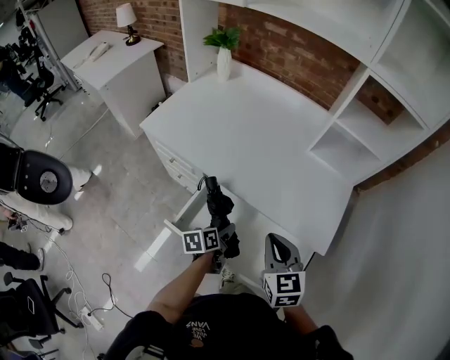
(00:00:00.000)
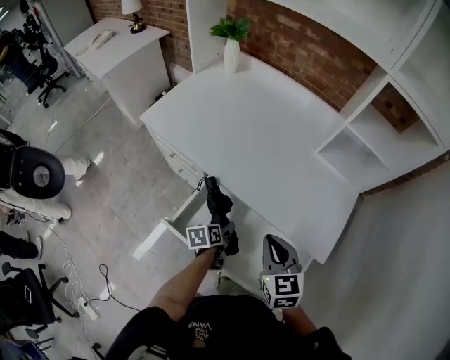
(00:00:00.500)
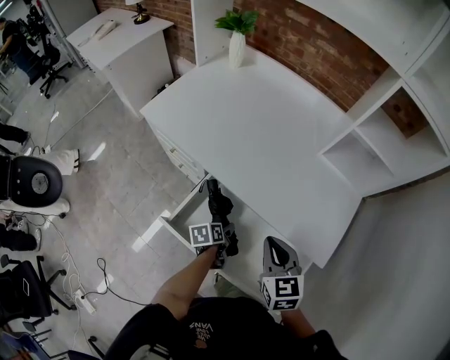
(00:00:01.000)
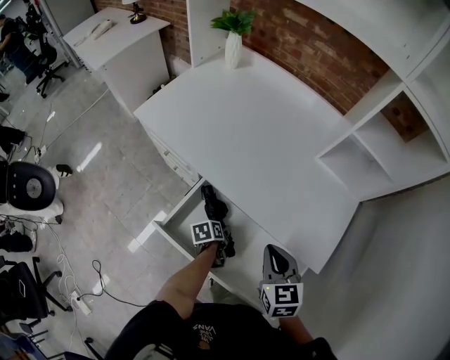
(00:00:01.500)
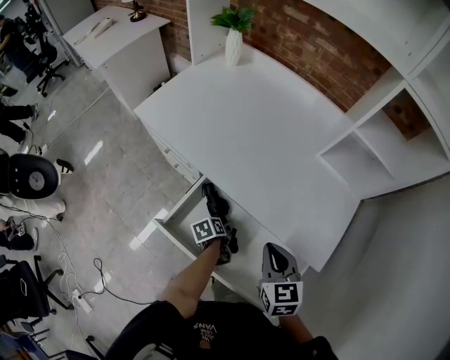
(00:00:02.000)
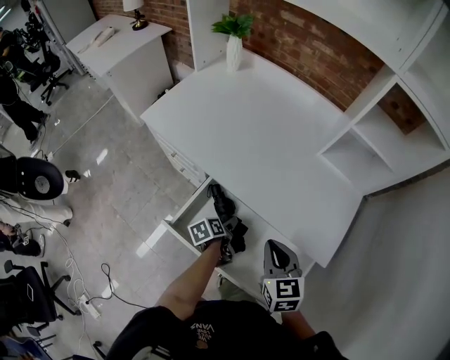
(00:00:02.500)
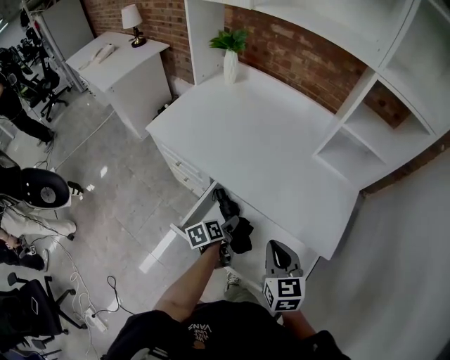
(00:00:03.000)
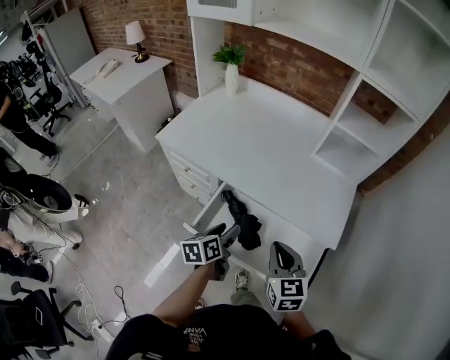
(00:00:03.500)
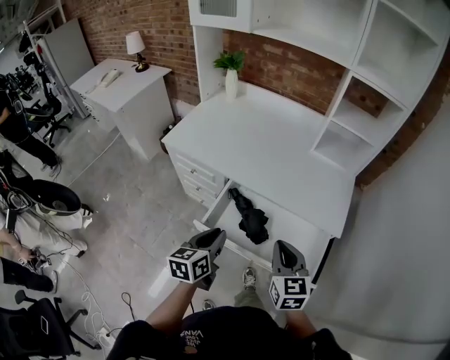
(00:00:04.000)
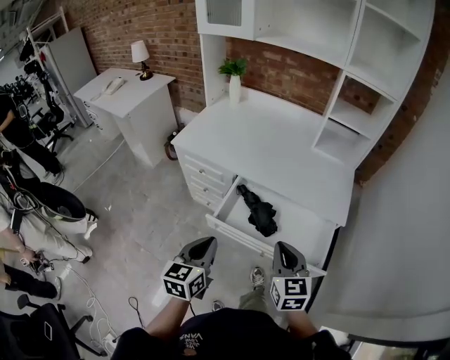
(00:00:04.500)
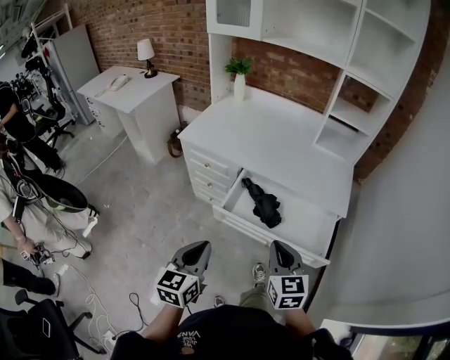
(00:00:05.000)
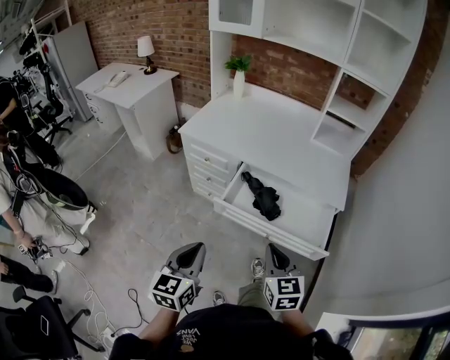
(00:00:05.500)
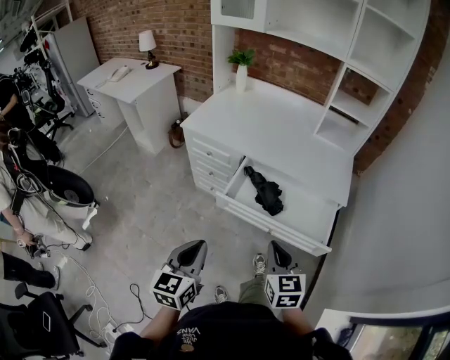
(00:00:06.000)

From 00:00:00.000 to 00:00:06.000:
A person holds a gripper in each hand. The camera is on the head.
From 00:00:00.000 to 00:00:02.000: The right gripper is displaced downward by roughly 5 cm. Meanwhile the left gripper heads downward, covering some 15 cm, and swivels roughly 30 degrees.
From 00:00:02.000 to 00:00:04.000: The right gripper moves backward, upward and to the left, approximately 20 cm. The left gripper shifts roughly 35 cm upward and backward, angles its fingers upward, by approximately 30 degrees, and closes up.
From 00:00:04.000 to 00:00:06.000: The grippers both shift backward and to the left by about 25 cm.

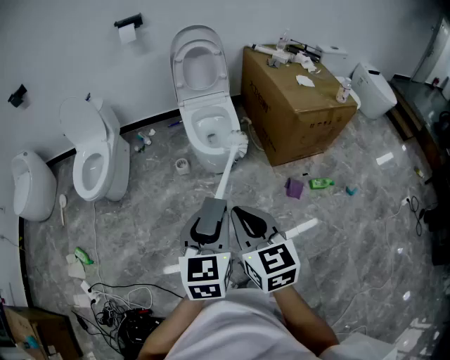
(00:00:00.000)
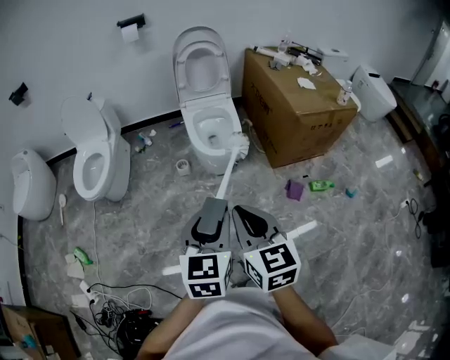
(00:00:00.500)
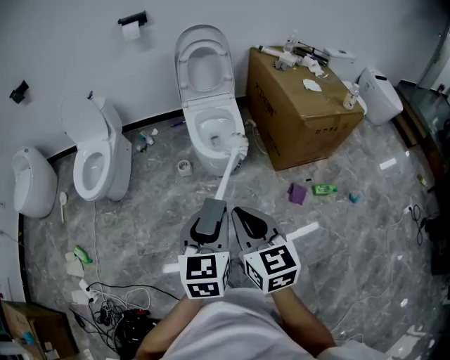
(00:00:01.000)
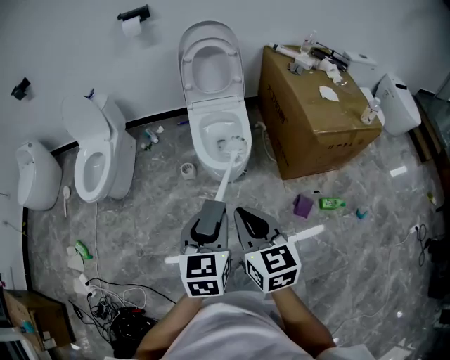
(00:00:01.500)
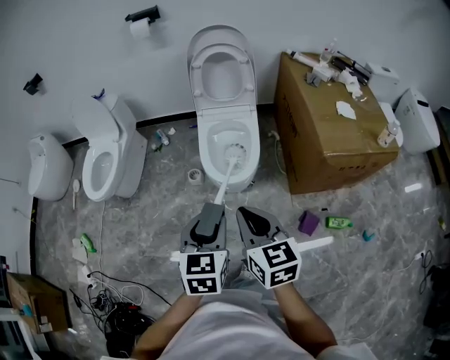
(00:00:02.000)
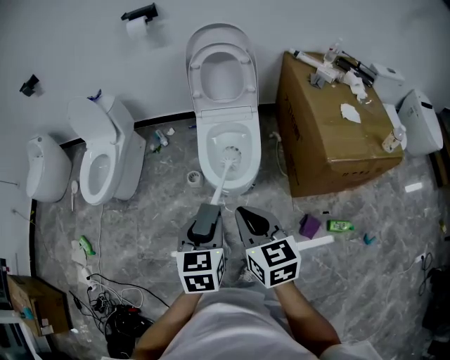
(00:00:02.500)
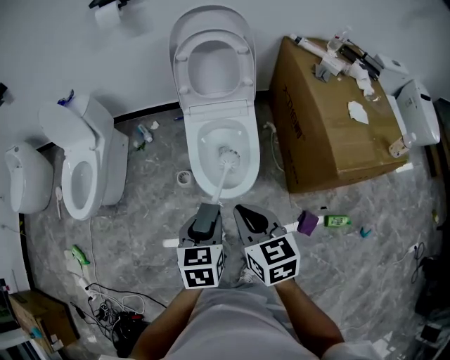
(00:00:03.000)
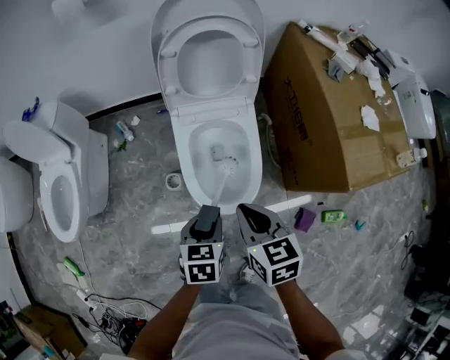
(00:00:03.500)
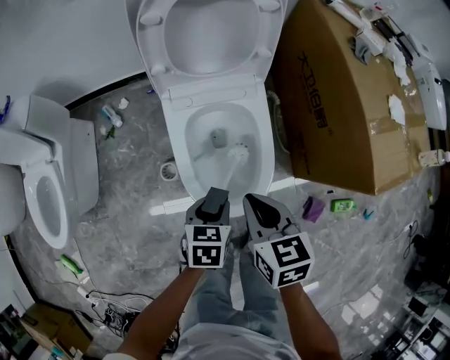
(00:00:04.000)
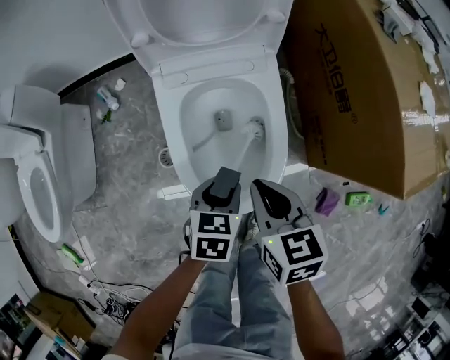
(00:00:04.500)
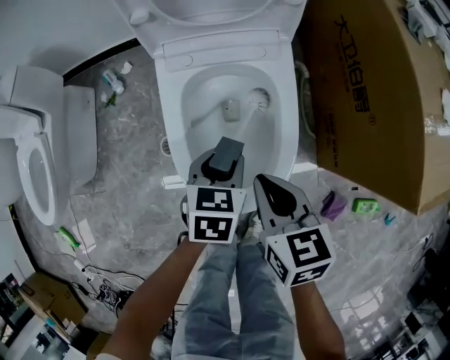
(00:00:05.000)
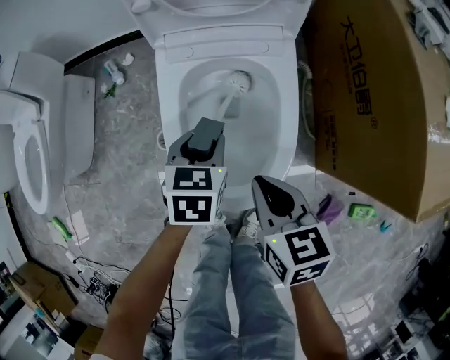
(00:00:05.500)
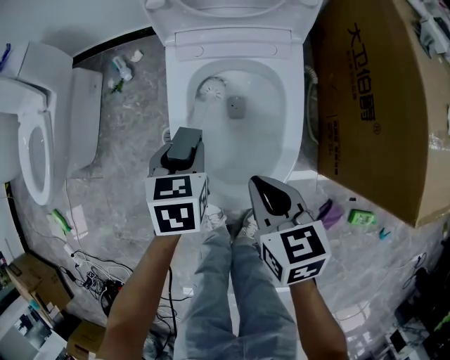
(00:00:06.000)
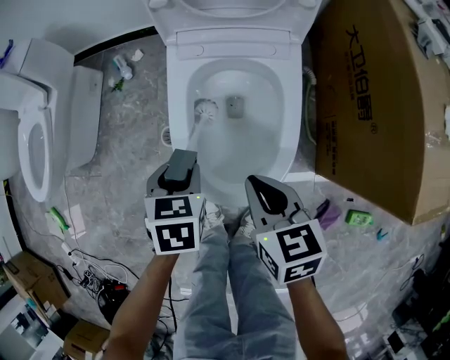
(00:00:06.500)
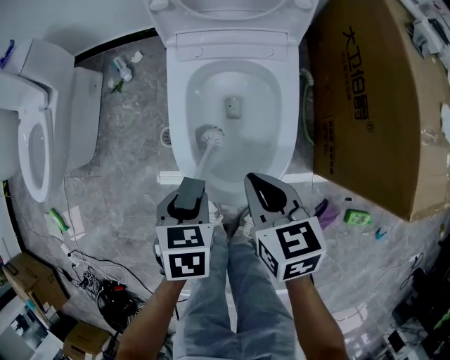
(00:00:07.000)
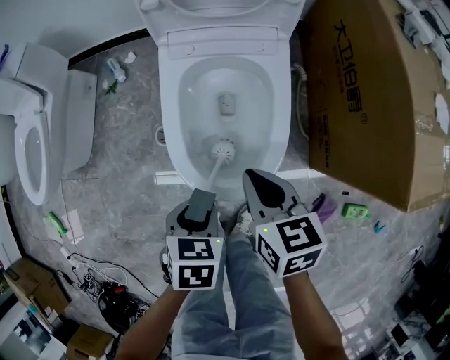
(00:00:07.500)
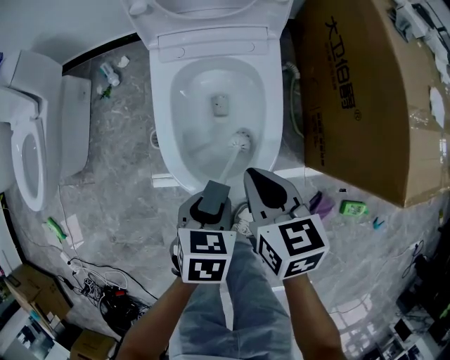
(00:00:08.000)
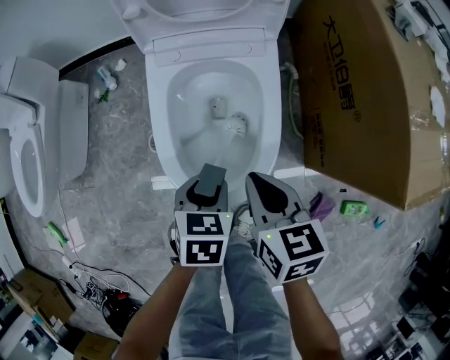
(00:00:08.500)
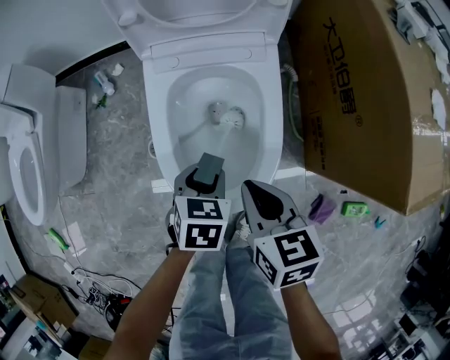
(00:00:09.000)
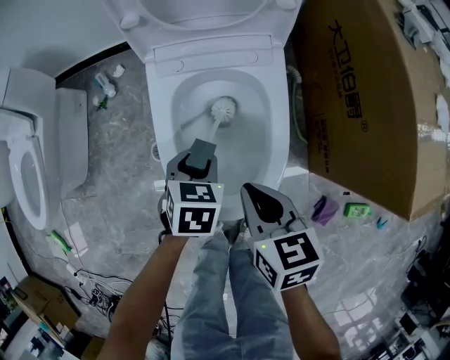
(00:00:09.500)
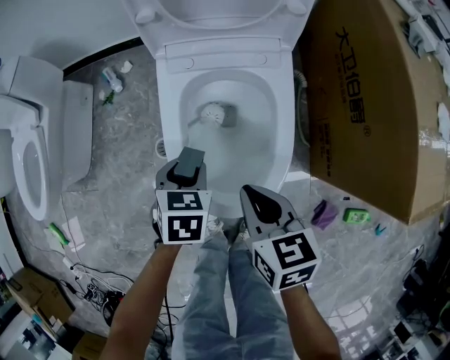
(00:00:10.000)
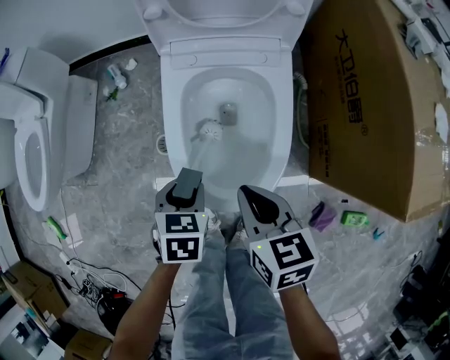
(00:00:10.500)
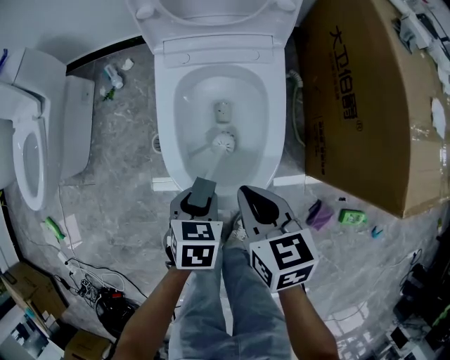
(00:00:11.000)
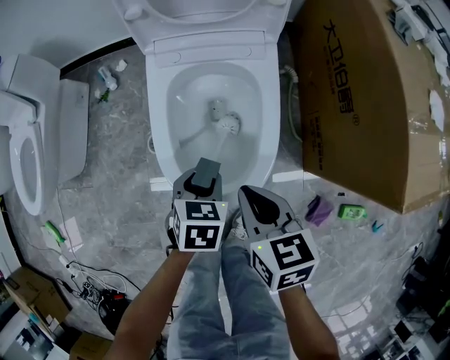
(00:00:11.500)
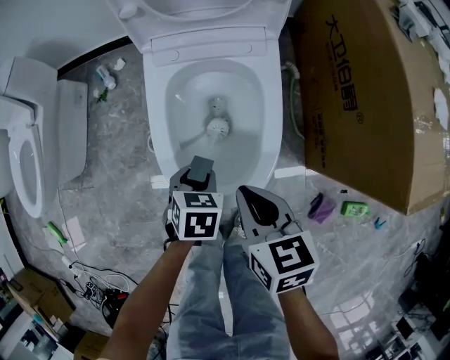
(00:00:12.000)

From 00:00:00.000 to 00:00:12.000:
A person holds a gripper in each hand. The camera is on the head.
From 00:00:00.000 to 00:00:02.000: The grippers both shift forward and to the right by about 25 cm.
From 00:00:02.000 to 00:00:04.000: The grippers both shift forward and downward by roughly 50 cm. The left gripper turns by approximately 30 degrees, while the right gripper turns by approximately 20 degrees.
From 00:00:04.000 to 00:00:06.000: The right gripper heads downward, covering roughly 15 cm. The left gripper moves approximately 10 cm, and rotates roughly 20 degrees.
From 00:00:06.000 to 00:00:08.000: The left gripper moves backward and to the right, roughly 15 cm.
From 00:00:08.000 to 00:00:10.000: The left gripper heads forward and to the left, covering about 15 cm.
From 00:00:10.000 to 00:00:12.000: The left gripper travels backward by approximately 5 cm.

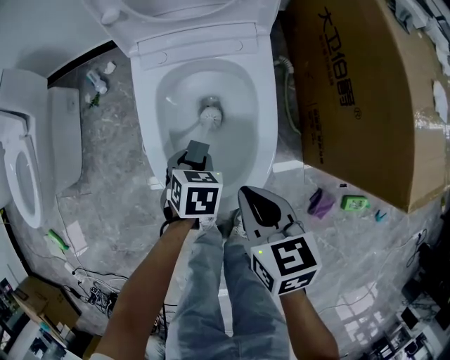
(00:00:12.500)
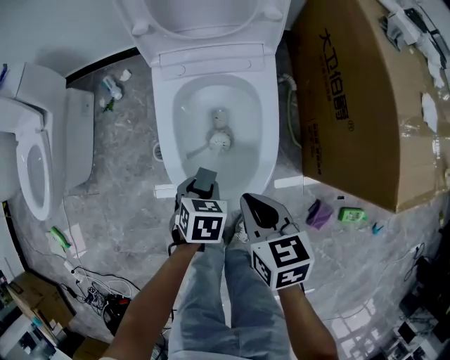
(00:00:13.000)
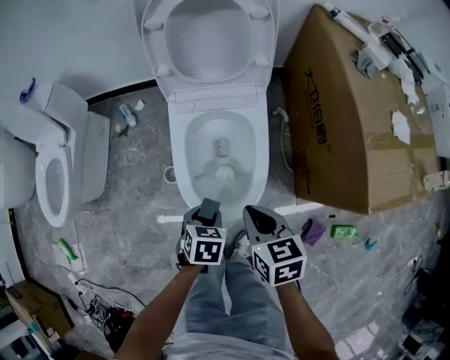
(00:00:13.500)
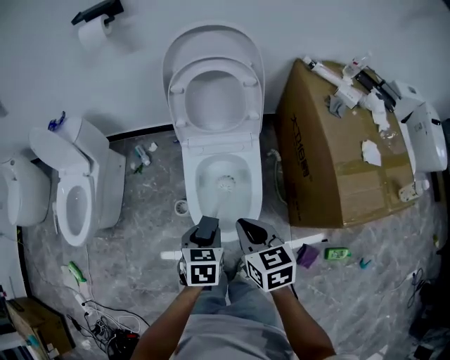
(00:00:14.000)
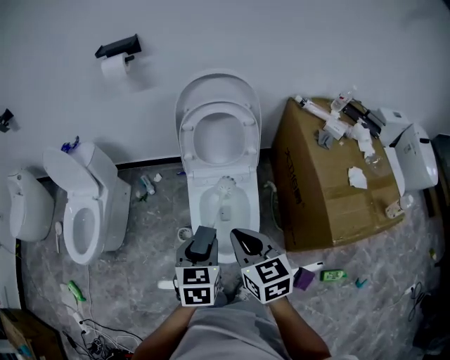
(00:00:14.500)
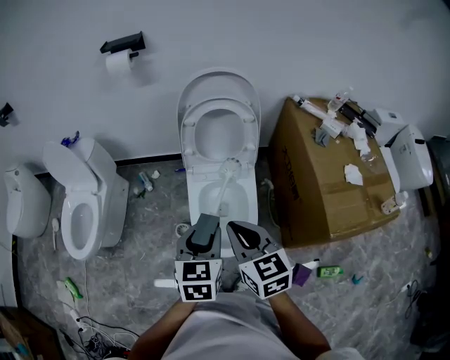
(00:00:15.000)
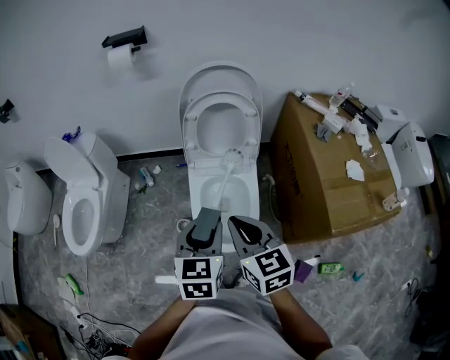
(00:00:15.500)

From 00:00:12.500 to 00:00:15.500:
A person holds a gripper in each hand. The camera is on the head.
From 00:00:12.500 to 00:00:14.000: The grippers both shift upward by approximately 30 cm.
From 00:00:14.000 to 00:00:15.500: Both grippers travel together upward, approximately 15 cm. The left gripper changes its angle by roughly 20 degrees.

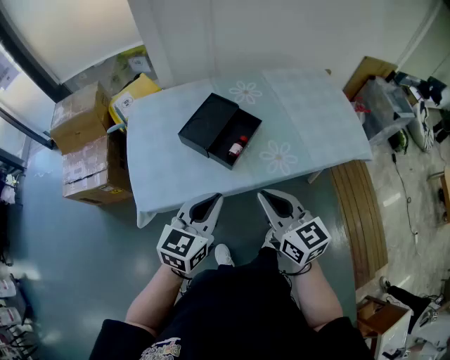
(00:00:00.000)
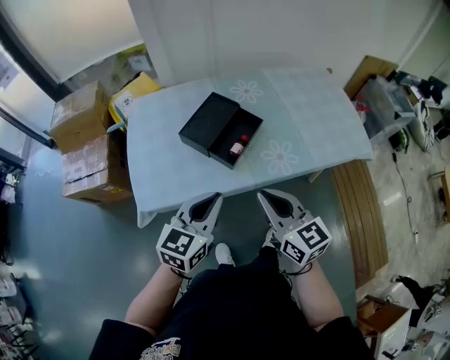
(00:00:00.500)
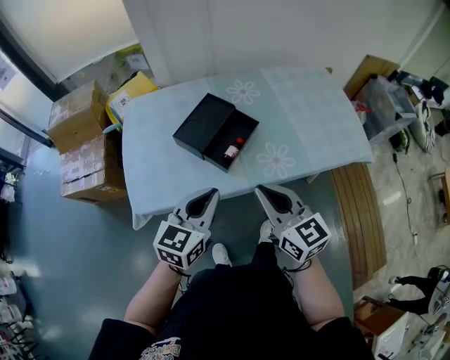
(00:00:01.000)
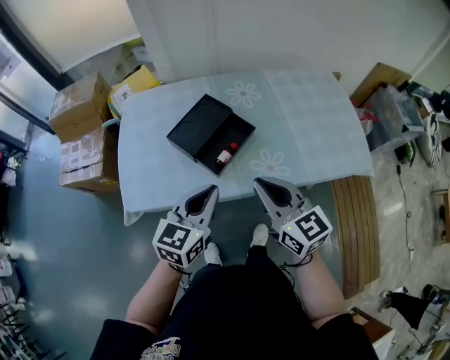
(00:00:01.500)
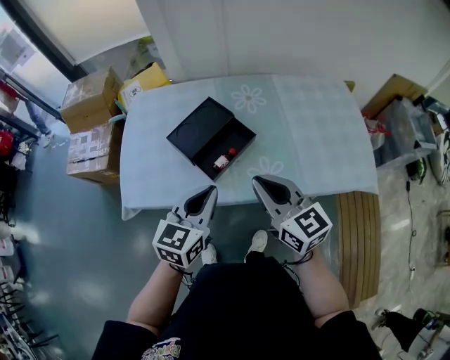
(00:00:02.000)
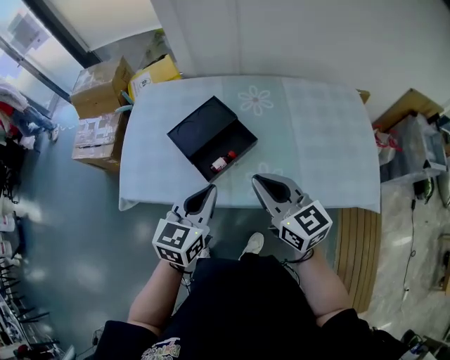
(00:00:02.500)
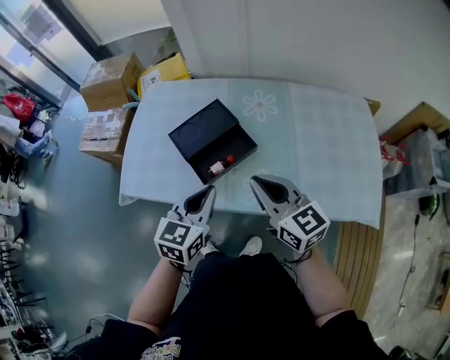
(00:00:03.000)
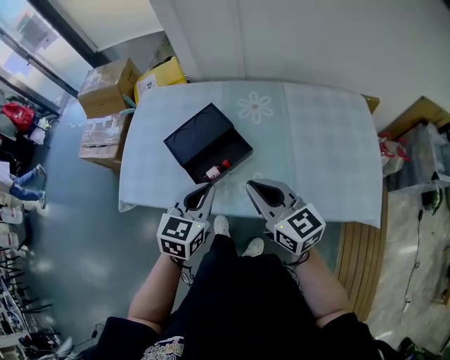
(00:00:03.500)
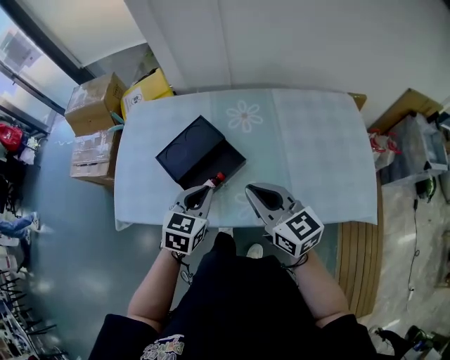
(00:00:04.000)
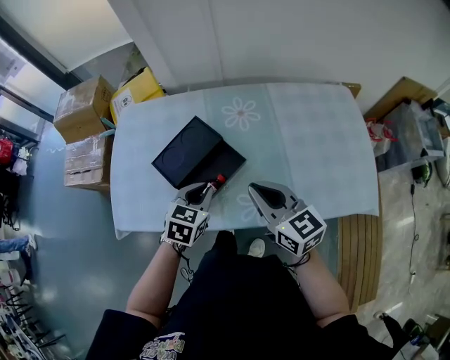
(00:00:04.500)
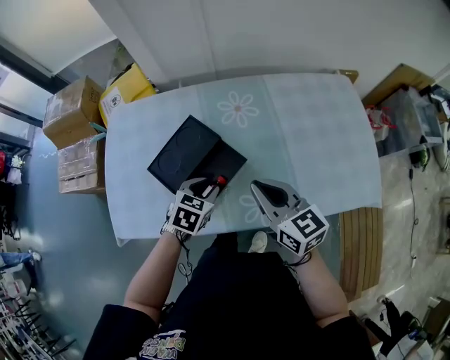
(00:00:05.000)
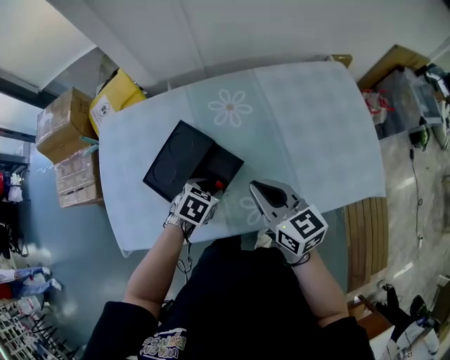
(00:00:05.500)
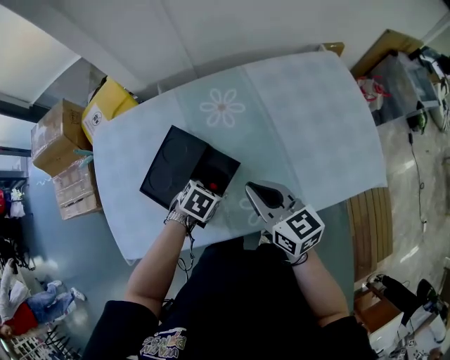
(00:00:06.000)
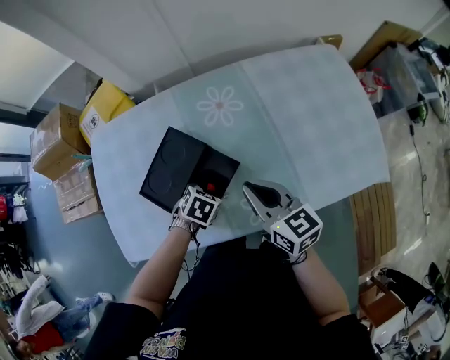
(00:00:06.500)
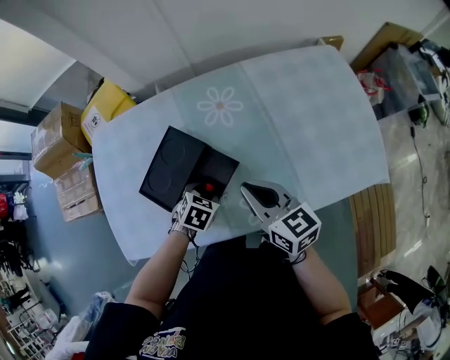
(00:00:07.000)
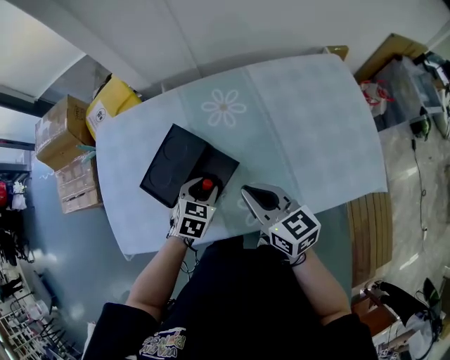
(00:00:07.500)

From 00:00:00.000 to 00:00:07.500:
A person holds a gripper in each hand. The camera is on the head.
From 00:00:00.000 to 00:00:02.000: The right gripper travels forward and to the right by roughly 15 cm; the left gripper is displaced to the right and forward by approximately 10 cm.
From 00:00:02.000 to 00:00:04.000: The left gripper heads forward, downward and to the right, covering roughly 15 cm. Meanwhile the right gripper is displaced forward and to the right by approximately 10 cm.
From 00:00:04.000 to 00:00:05.500: The left gripper shifts approximately 15 cm downward and forward, rotates approximately 40 degrees, and opens up. Meanwhile the right gripper goes some 10 cm forward and downward.
From 00:00:05.500 to 00:00:07.500: The grippers move only a little.
